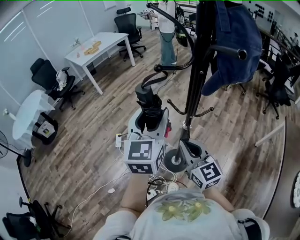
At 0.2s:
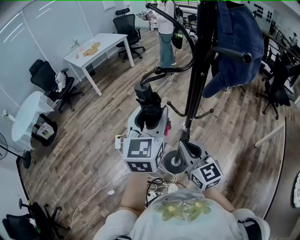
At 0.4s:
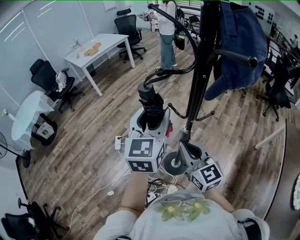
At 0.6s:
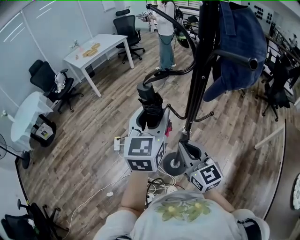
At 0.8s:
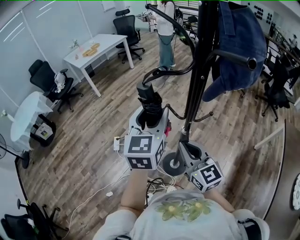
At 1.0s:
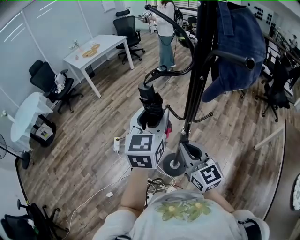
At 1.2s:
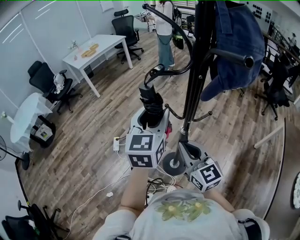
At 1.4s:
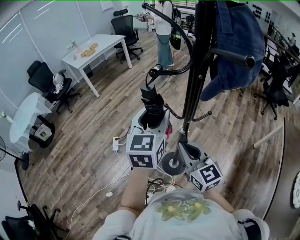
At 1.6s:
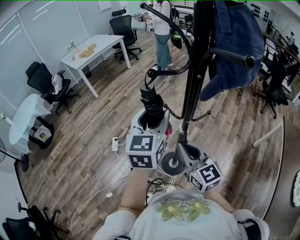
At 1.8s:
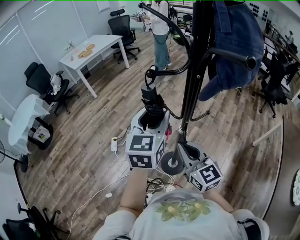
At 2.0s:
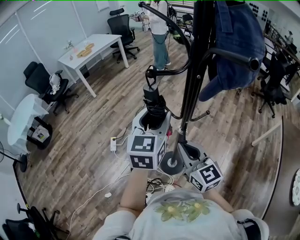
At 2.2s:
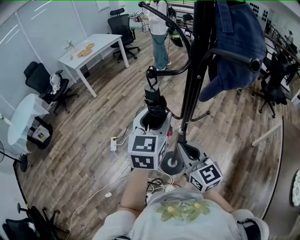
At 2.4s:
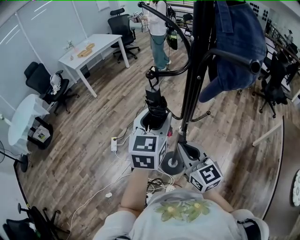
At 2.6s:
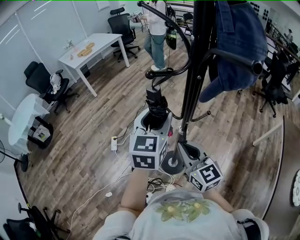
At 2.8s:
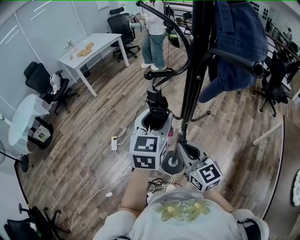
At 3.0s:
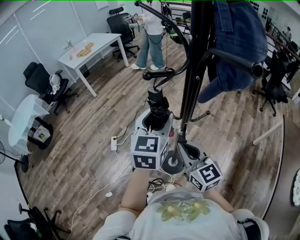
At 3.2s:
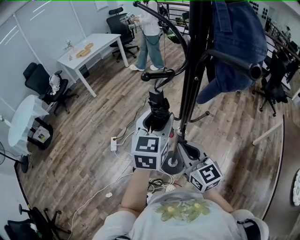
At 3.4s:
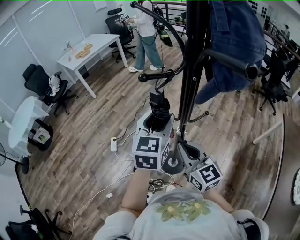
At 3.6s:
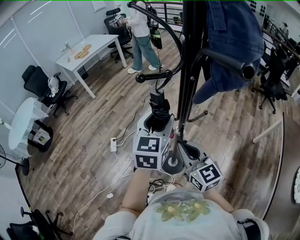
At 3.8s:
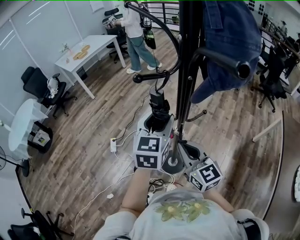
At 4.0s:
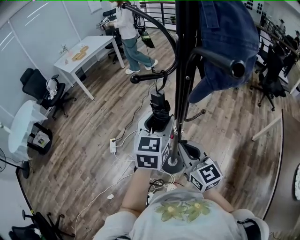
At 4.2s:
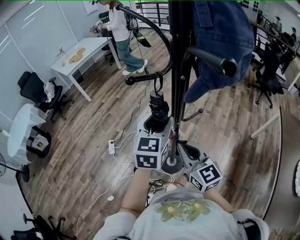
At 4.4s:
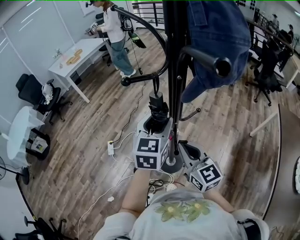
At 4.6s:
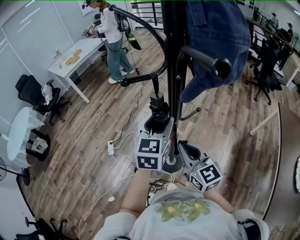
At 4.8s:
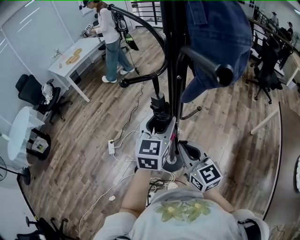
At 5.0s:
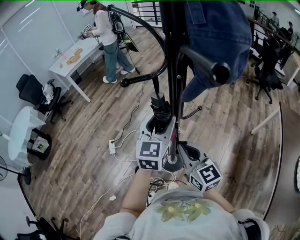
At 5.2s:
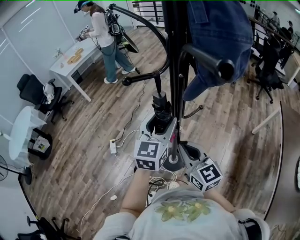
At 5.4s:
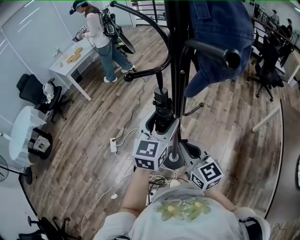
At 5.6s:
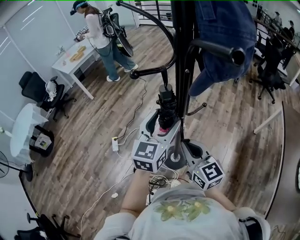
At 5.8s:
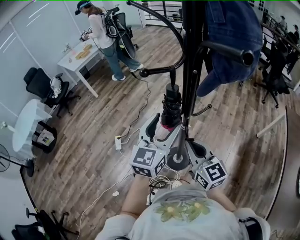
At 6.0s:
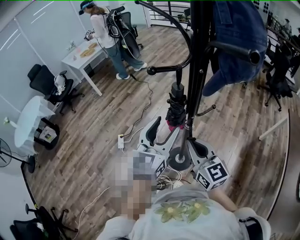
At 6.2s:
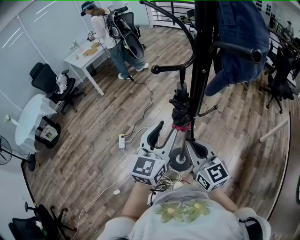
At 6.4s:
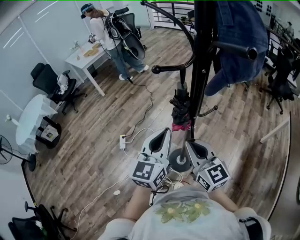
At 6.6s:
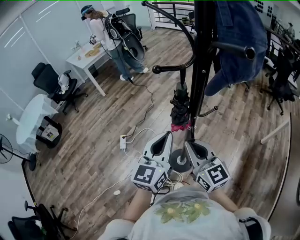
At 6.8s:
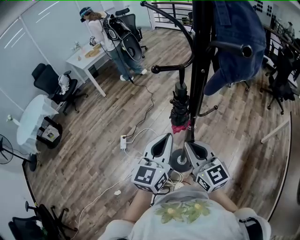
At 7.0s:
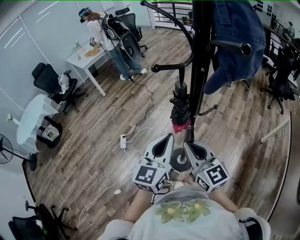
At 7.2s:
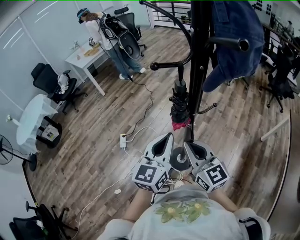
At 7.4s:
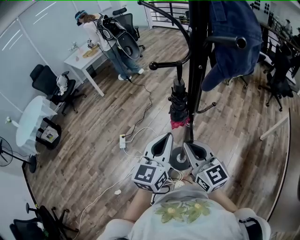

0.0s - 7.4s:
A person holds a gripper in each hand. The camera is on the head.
0.0s - 1.4s: The left gripper moves about 5 cm.
1.4s - 3.0s: The grippers make only small movements.
3.0s - 4.4s: The left gripper moves some 5 cm.
4.4s - 6.0s: The left gripper is displaced backward by roughly 5 cm.
6.0s - 7.4s: The left gripper heads backward, covering roughly 5 cm, and closes its fingers.

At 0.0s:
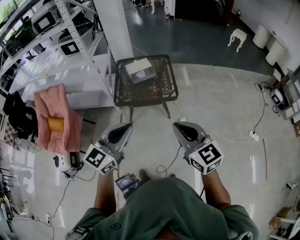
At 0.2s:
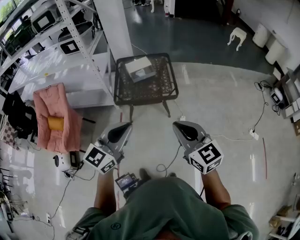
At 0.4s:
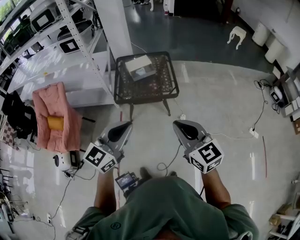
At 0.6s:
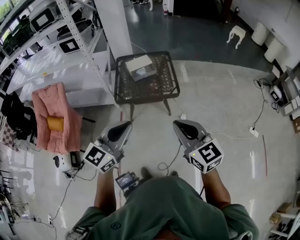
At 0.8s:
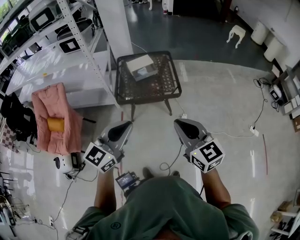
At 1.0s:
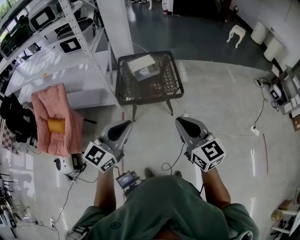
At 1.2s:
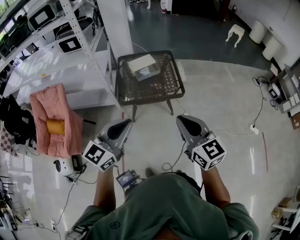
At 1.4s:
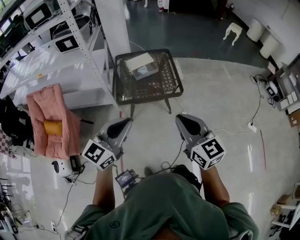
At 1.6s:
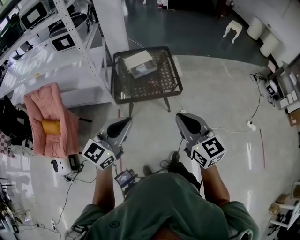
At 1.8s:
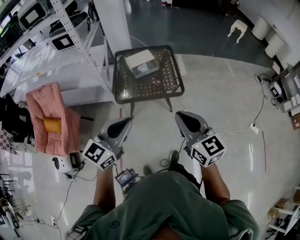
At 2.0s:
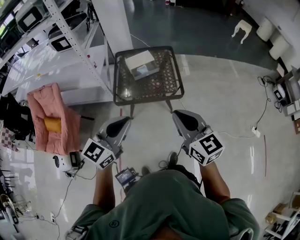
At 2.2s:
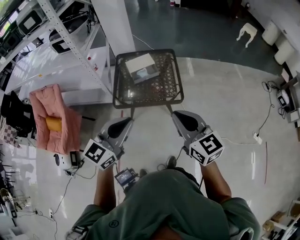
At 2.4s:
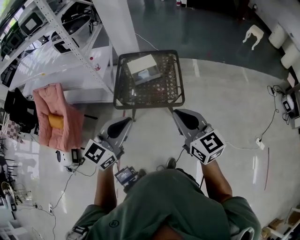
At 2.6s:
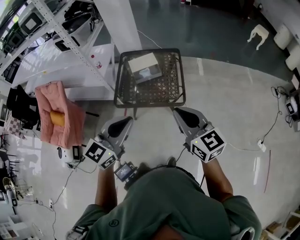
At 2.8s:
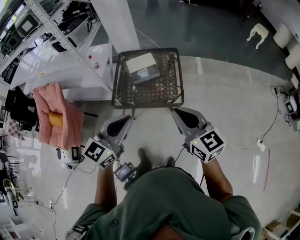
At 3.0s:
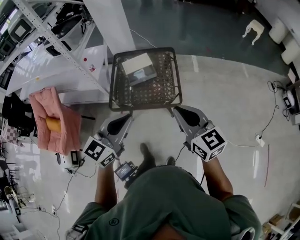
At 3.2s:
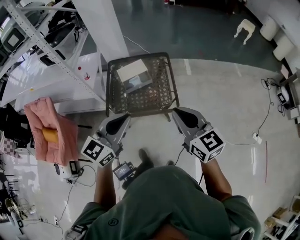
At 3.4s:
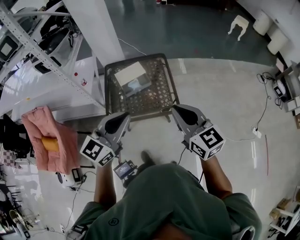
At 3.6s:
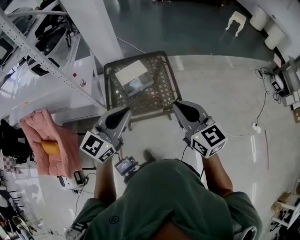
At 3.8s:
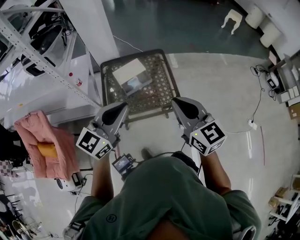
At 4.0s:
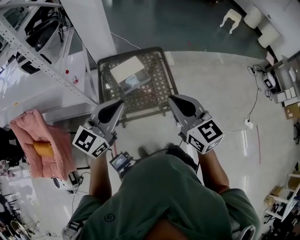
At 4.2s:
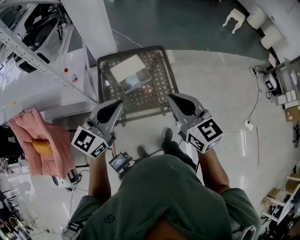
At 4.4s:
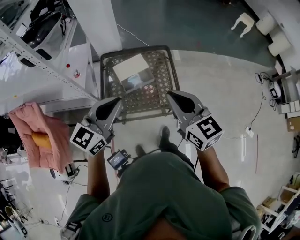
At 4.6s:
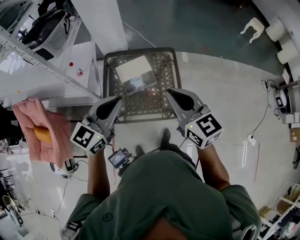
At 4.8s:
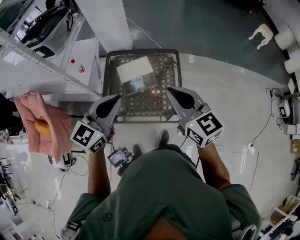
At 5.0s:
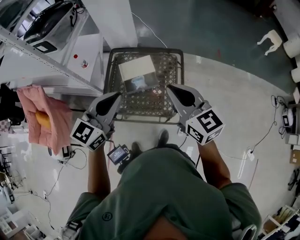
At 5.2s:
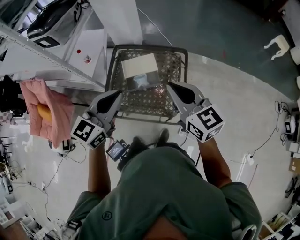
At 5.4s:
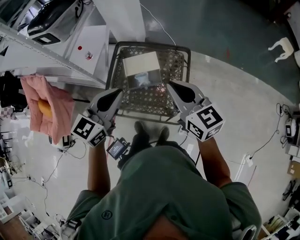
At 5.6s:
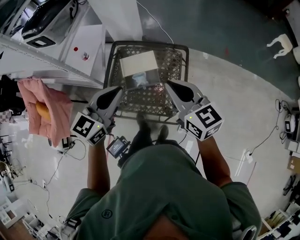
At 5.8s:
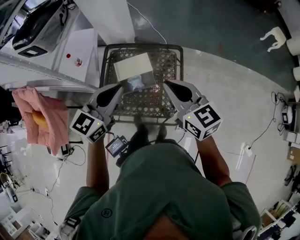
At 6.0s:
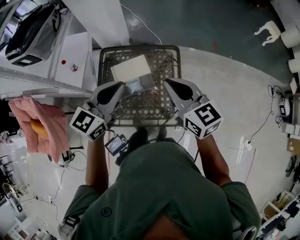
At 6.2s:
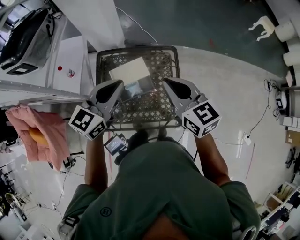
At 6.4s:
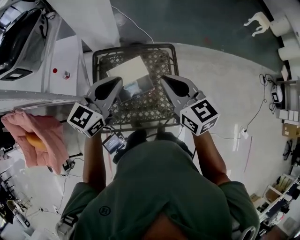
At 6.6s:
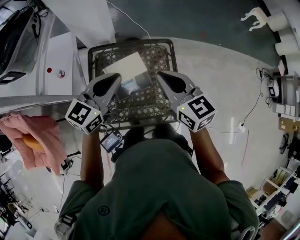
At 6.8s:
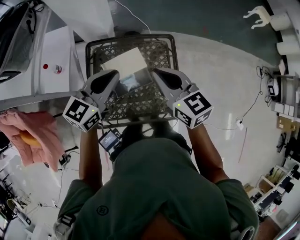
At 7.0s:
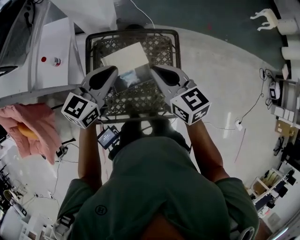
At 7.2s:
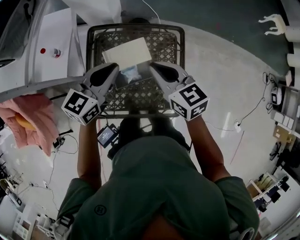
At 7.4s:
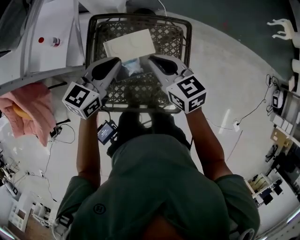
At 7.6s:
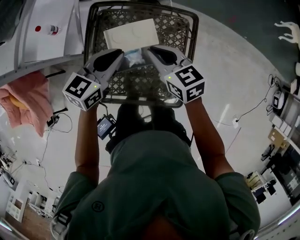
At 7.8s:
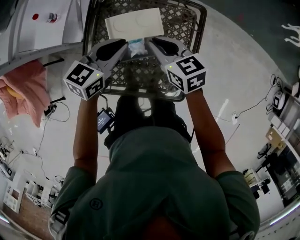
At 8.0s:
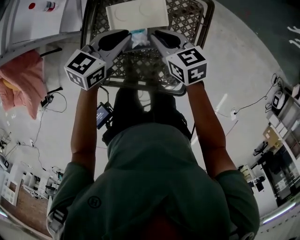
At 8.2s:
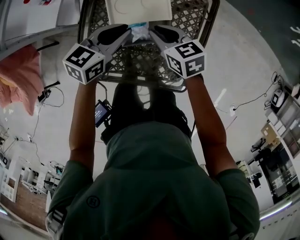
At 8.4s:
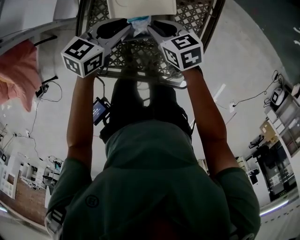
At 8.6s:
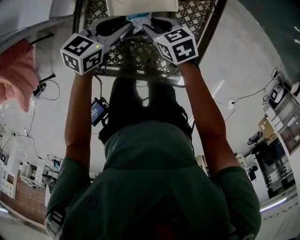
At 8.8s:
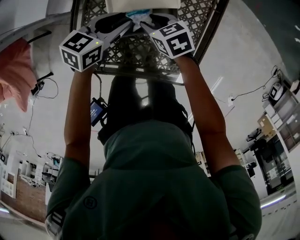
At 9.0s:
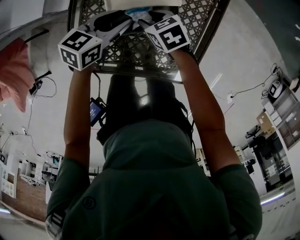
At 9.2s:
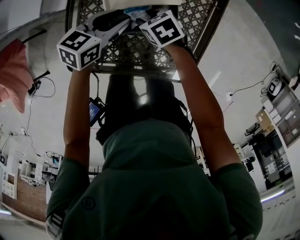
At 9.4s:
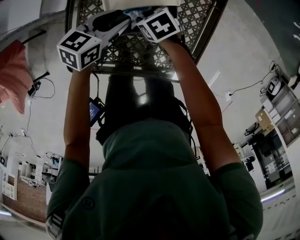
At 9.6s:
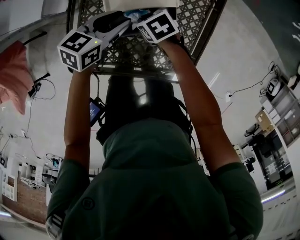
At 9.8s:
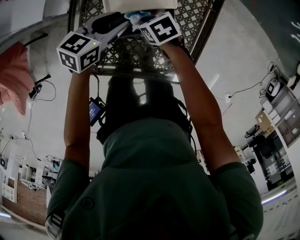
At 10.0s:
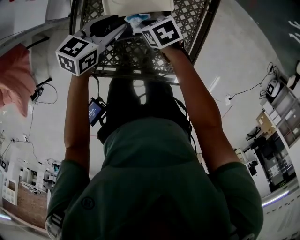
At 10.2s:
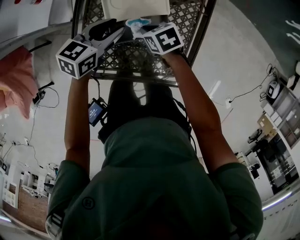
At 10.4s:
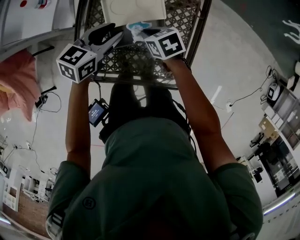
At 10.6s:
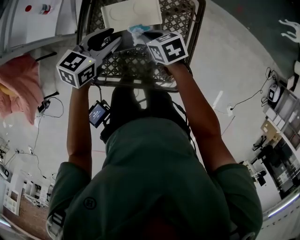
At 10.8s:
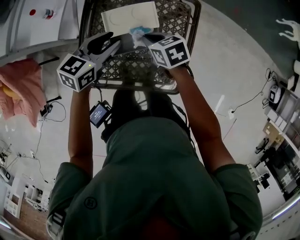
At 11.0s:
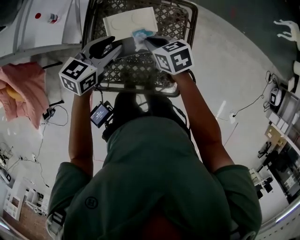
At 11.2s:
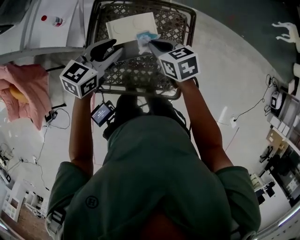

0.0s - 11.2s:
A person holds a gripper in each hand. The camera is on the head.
0.0s - 1.6s: Both grippers travel together to the left and forward, roughly 15 cm.
1.6s - 3.2s: The grippers both shift forward and to the right by roughly 30 cm.
3.2s - 4.8s: Both grippers travel together forward, roughly 25 cm.
4.8s - 6.4s: The grippers both shift forward by roughly 20 cm.
6.4s - 8.0s: The two grippers go approximately 30 cm downward. The right gripper changes its angle by about 30 degrees, while the left gripper changes its angle by about 30 degrees.
8.0s - 9.6s: The right gripper heads downward, covering approximately 20 cm, rotates approximately 30 degrees, and opens, then closes again. Meanwhile the left gripper travels downward by roughly 10 cm, and opens.
9.6s - 11.2s: The two grippers go roughly 25 cm upward. The right gripper rotates approximately 30 degrees.

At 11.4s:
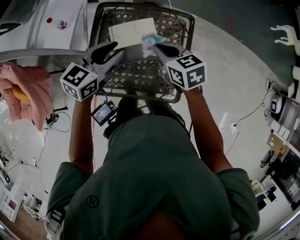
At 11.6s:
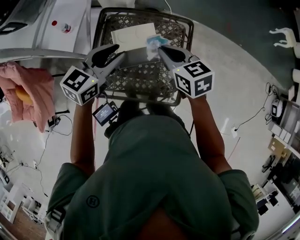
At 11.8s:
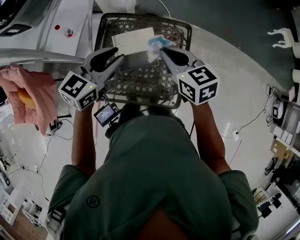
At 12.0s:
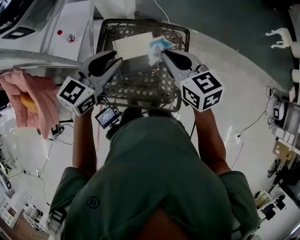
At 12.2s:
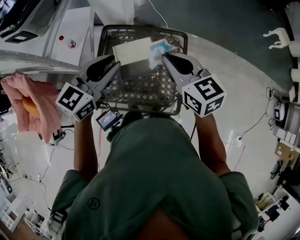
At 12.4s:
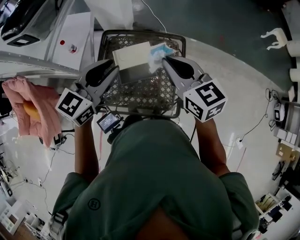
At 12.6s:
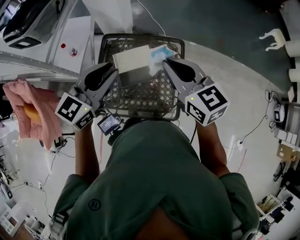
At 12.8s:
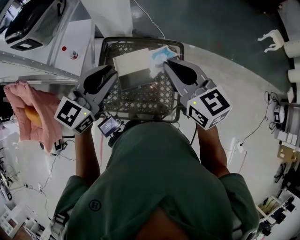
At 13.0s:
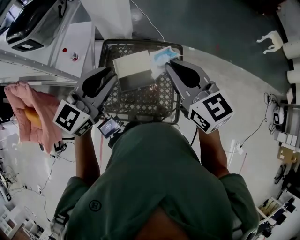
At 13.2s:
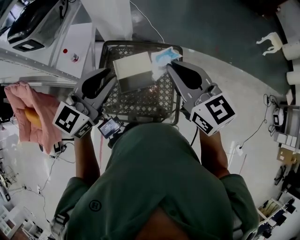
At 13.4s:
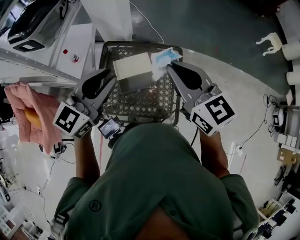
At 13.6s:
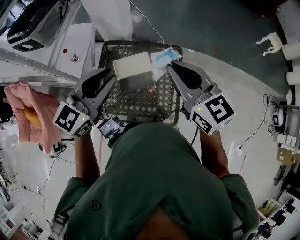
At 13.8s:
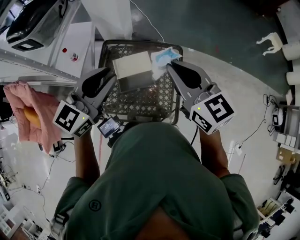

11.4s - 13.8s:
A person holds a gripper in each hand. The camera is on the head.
11.4s - 12.6s: The left gripper shifts about 20 cm upward and backward; the right gripper goes approximately 20 cm upward, and swivels roughly 30 degrees.
12.6s - 13.8s: The right gripper ends up about 5 cm from where it was.

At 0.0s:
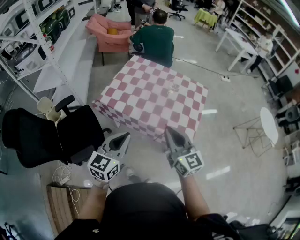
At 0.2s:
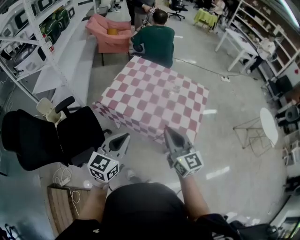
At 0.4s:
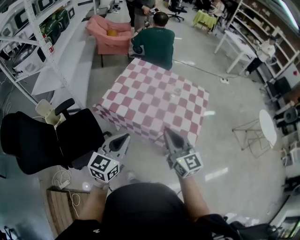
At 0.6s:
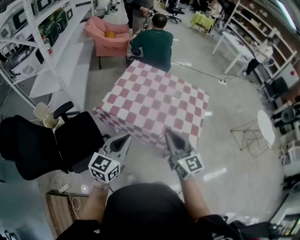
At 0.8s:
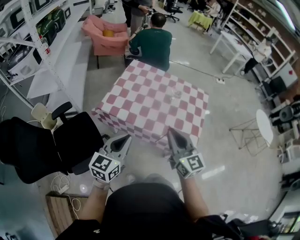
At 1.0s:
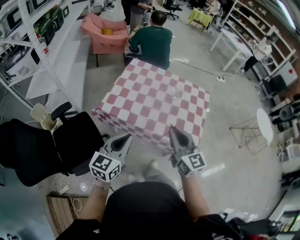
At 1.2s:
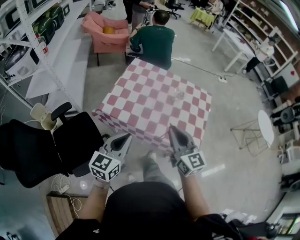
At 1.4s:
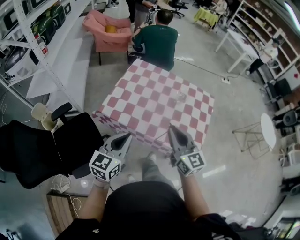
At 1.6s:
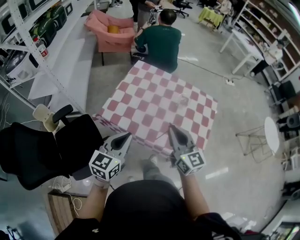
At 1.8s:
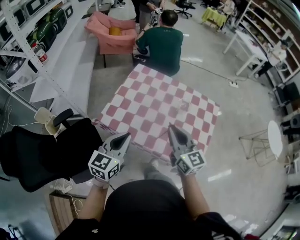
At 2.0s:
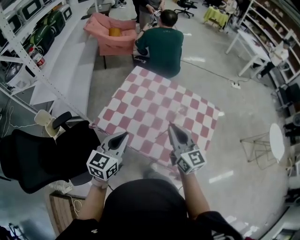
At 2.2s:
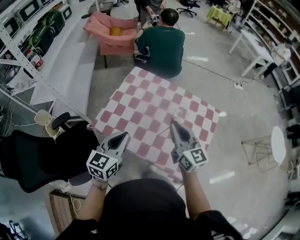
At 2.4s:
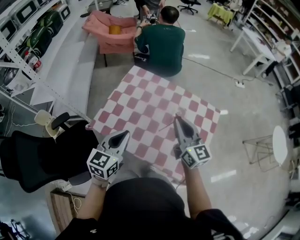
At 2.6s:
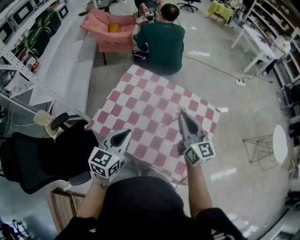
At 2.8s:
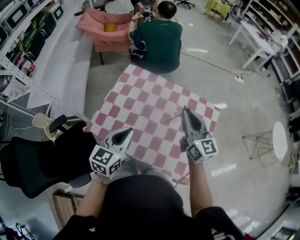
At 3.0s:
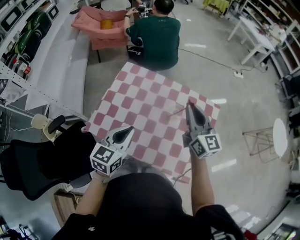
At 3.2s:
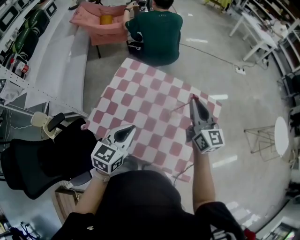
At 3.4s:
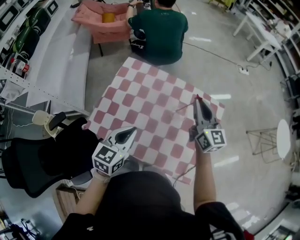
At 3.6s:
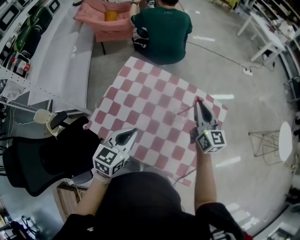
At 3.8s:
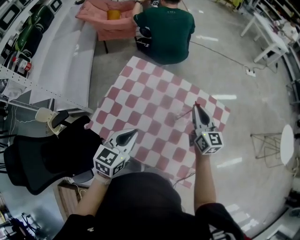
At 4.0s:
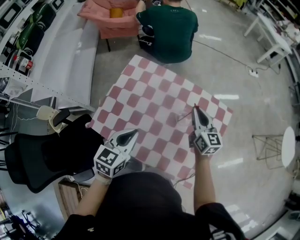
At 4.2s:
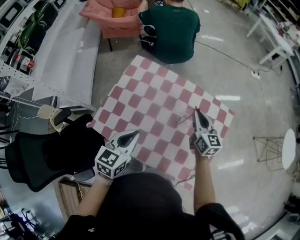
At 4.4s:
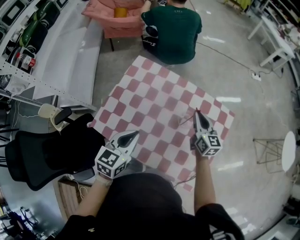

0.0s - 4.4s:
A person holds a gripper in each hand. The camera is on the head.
0.0s - 1.4s: The two grippers go approximately 15 cm forward and to the left.
1.4s - 3.0s: Both grippers move forward and to the right, some 30 cm.
3.0s - 4.4s: The left gripper is displaced downward by about 5 cm. Meanwhile the right gripper moves downward and forward, approximately 20 cm.
